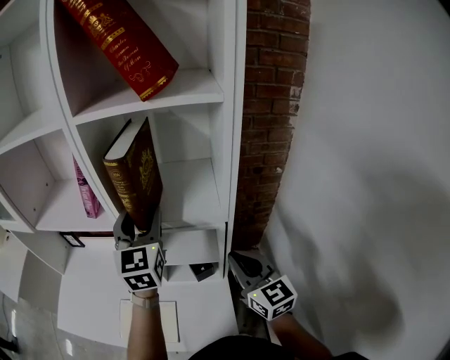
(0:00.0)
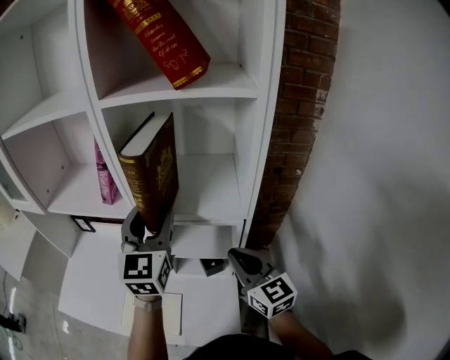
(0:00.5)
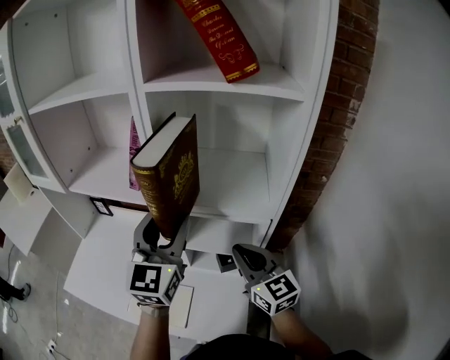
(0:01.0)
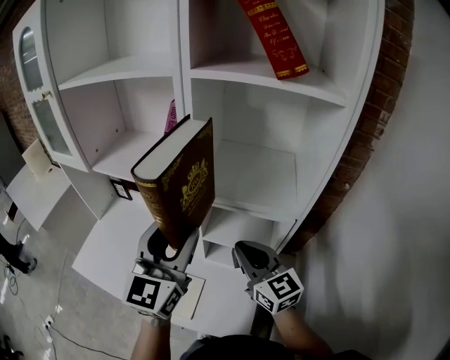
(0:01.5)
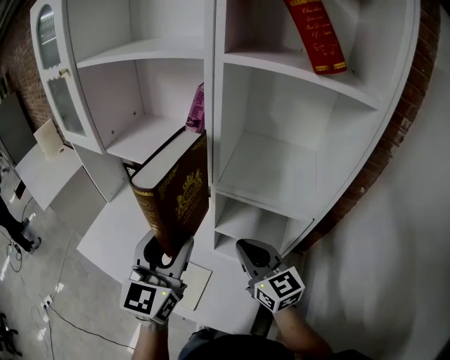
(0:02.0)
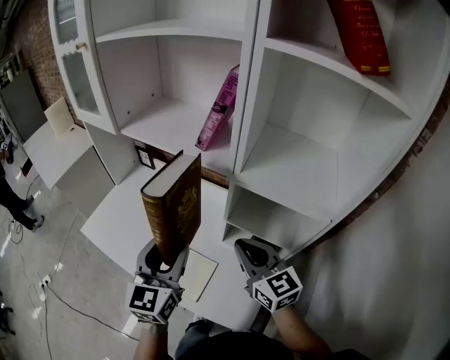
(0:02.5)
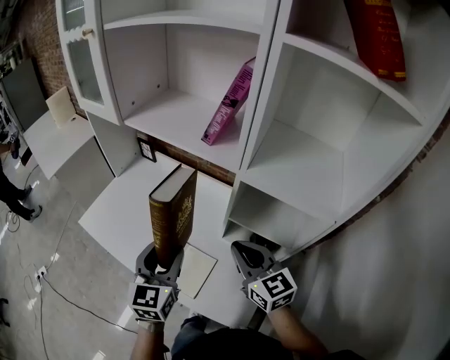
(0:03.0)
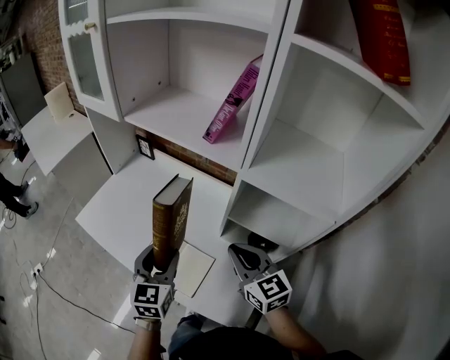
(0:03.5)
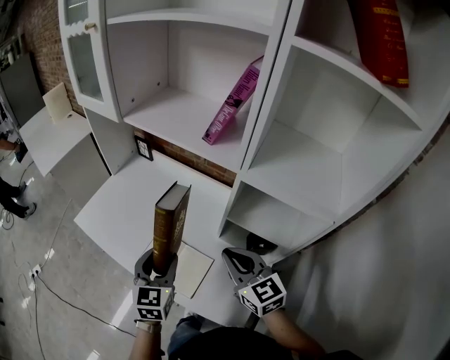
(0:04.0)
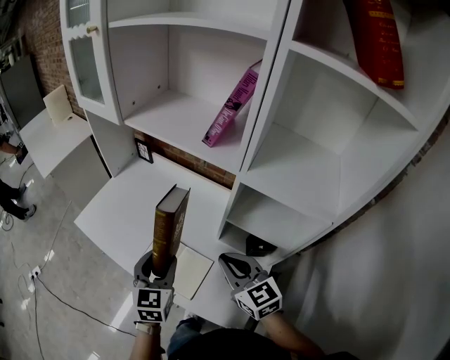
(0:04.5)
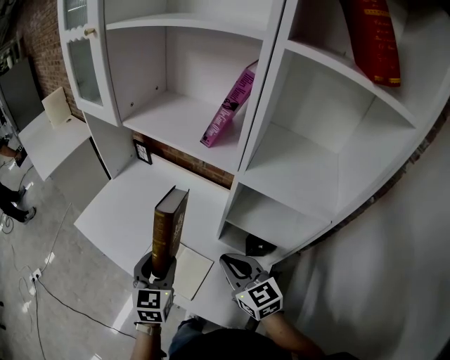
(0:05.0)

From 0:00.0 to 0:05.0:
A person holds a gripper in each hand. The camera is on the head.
From 0:00.0 to 0:02.5: The left gripper goes roughly 30 cm to the left, backward and downward, while the right gripper heads to the left, covering about 20 cm, and swivels roughly 30 degrees.
From 0:02.5 to 0:05.0: The left gripper is displaced downward by roughly 10 cm, while the right gripper moves downward, about 5 cm.

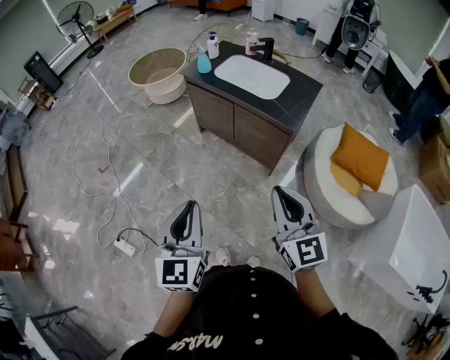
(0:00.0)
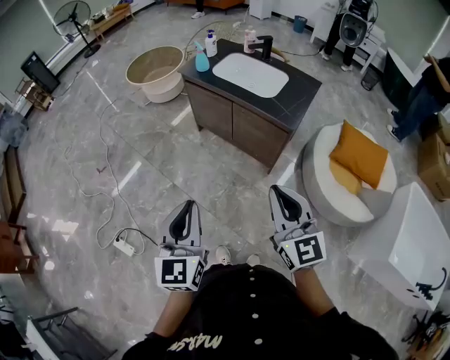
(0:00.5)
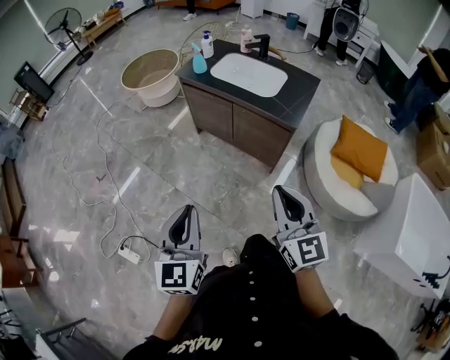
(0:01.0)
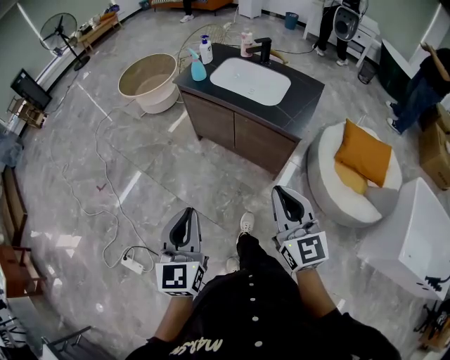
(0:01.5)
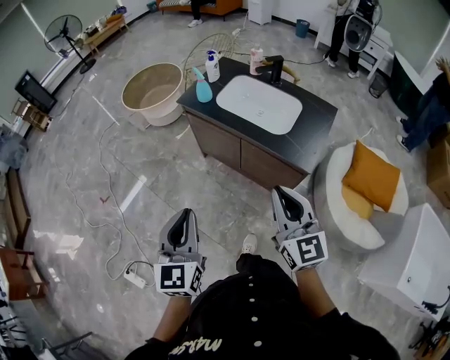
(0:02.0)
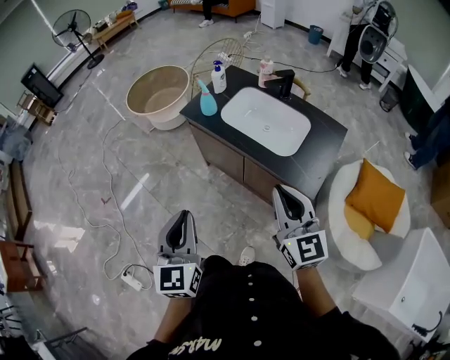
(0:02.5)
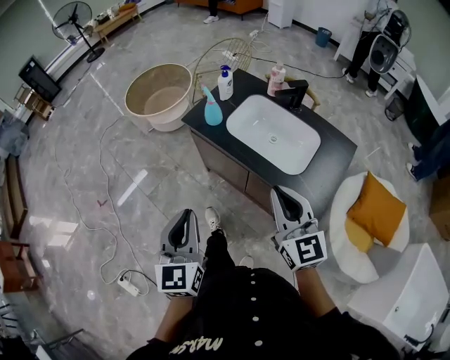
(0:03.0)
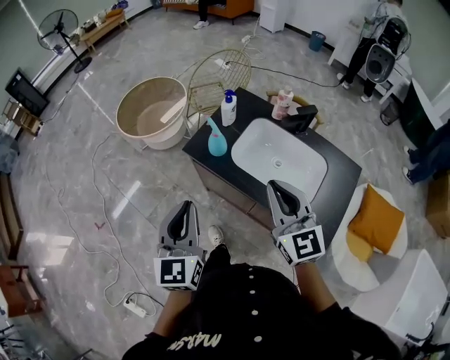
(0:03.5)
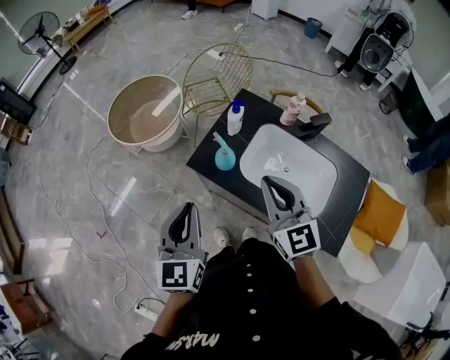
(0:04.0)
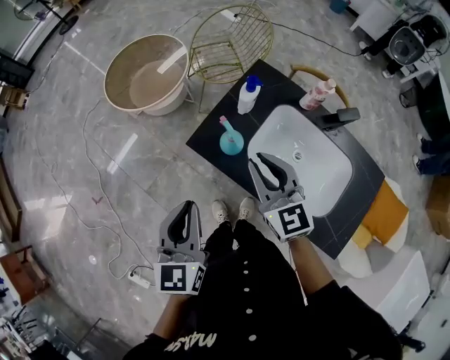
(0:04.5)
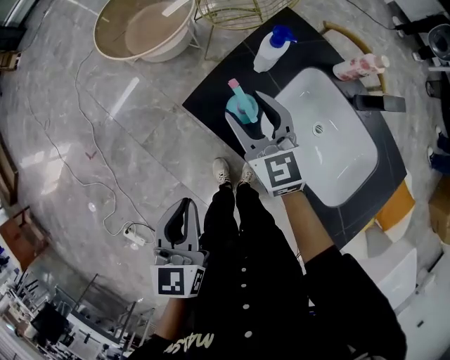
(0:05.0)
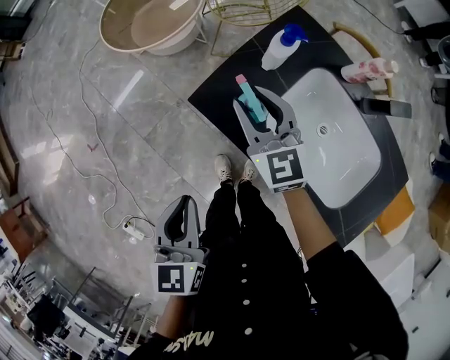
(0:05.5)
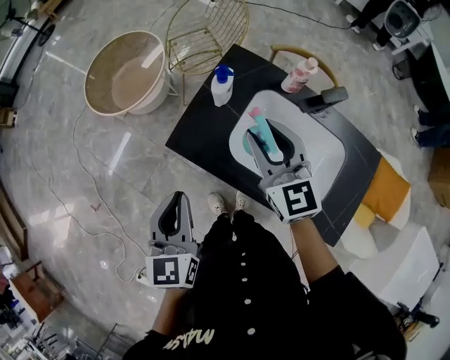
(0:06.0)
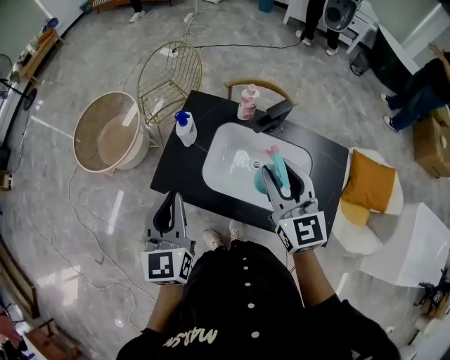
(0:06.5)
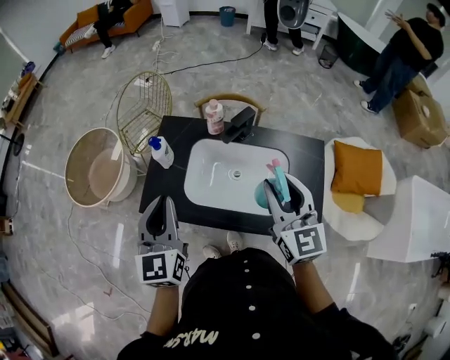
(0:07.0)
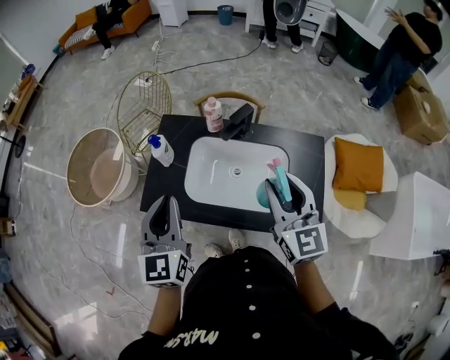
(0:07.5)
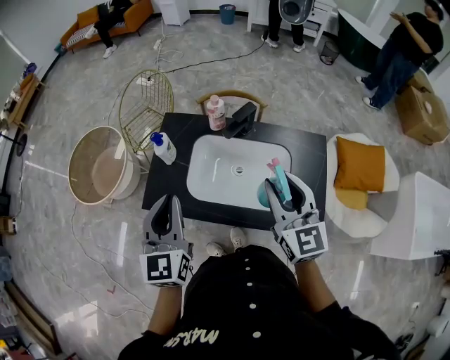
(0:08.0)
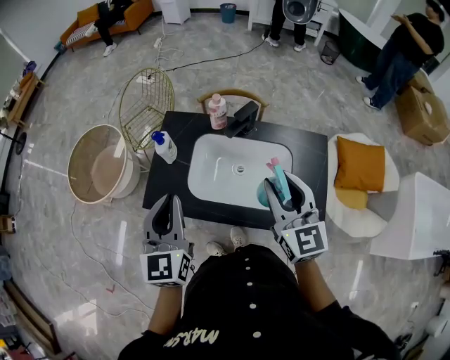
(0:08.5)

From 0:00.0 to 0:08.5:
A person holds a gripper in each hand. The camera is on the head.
From 0:00.0 to 0:02.0: Both grippers travel together forward, some 25 cm.
From 0:02.0 to 0:04.0: The two grippers travel together, forward, roughly 50 cm.
From 0:04.0 to 0:06.5: The left gripper reaches some 15 cm downward, then returns, while the right gripper reaches roughly 20 cm downward, then returns, and opens up.
From 0:06.5 to 0:08.5: The right gripper shifts about 10 cm to the right and backward. Meanwhile the left gripper travels to the right by approximately 5 cm.

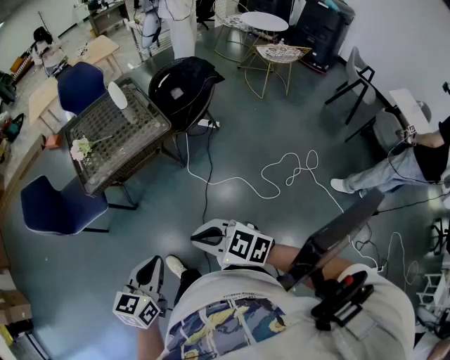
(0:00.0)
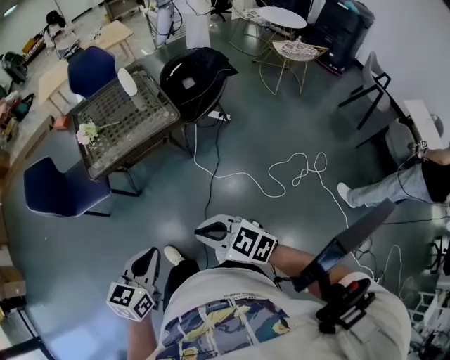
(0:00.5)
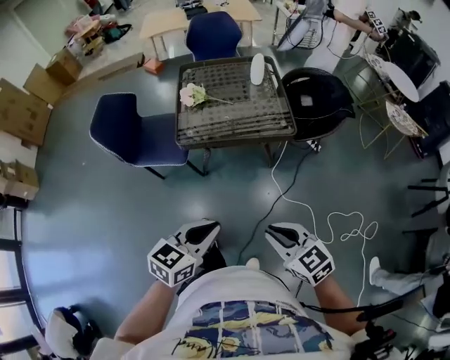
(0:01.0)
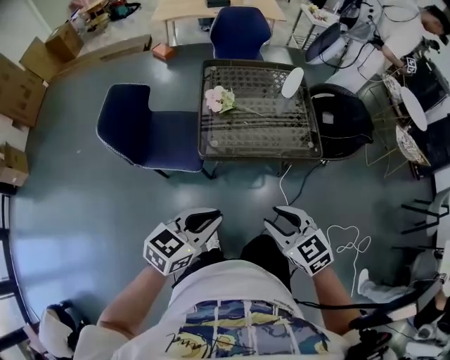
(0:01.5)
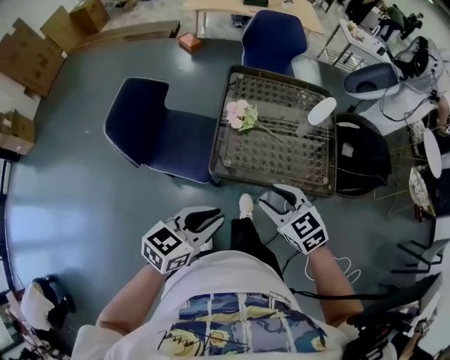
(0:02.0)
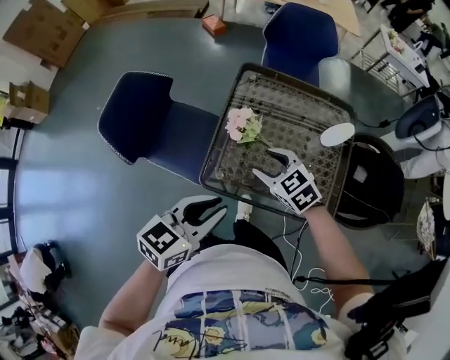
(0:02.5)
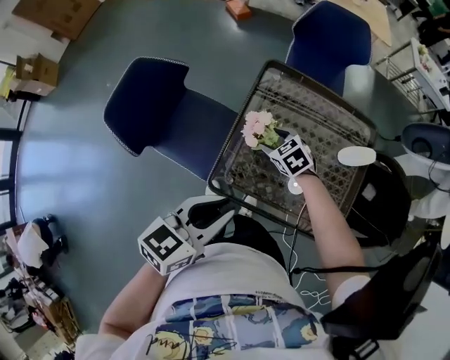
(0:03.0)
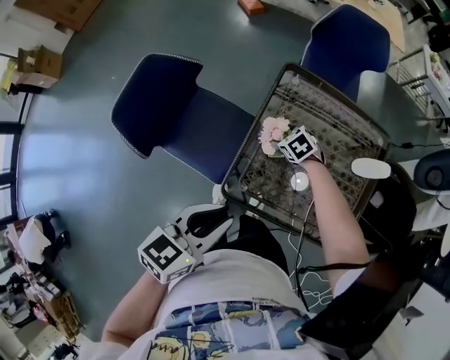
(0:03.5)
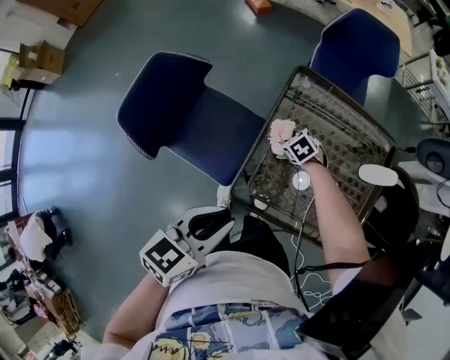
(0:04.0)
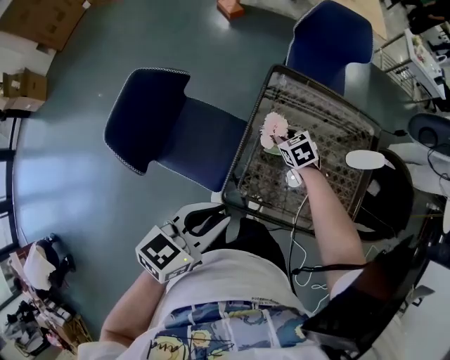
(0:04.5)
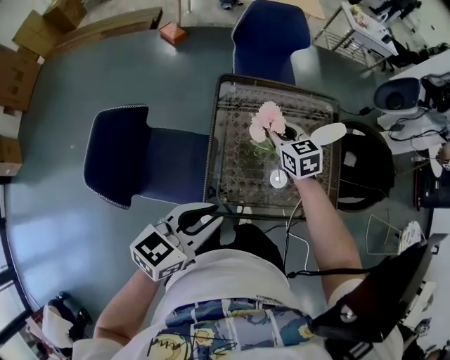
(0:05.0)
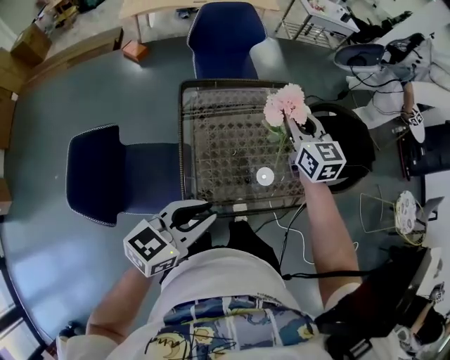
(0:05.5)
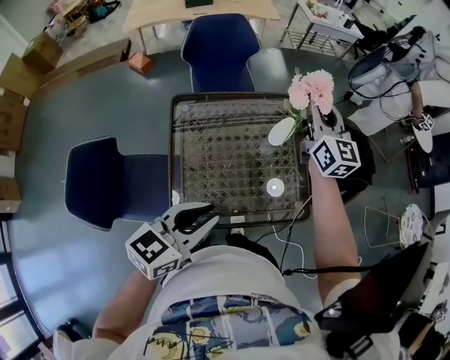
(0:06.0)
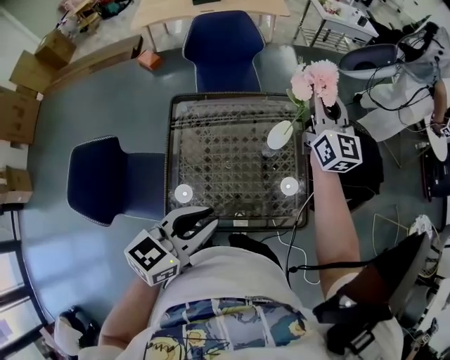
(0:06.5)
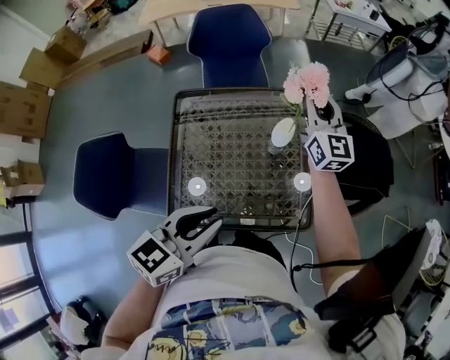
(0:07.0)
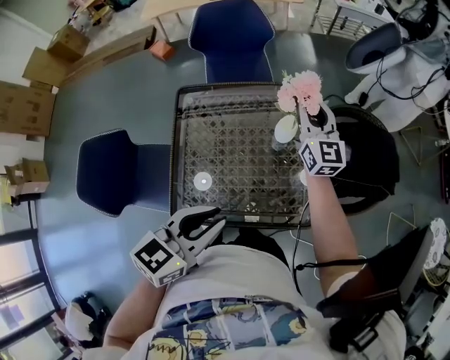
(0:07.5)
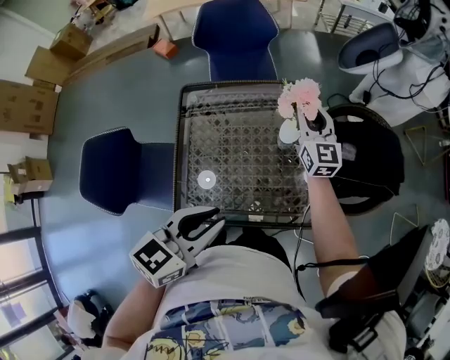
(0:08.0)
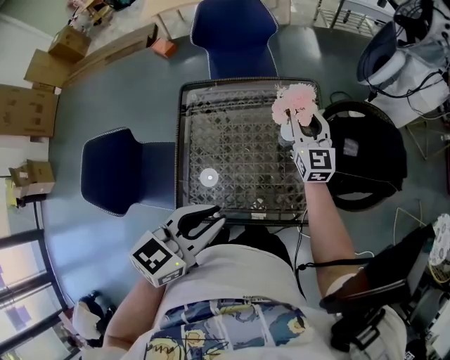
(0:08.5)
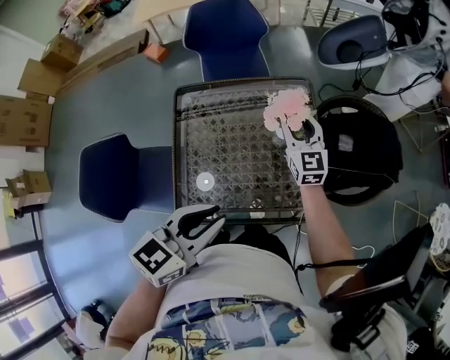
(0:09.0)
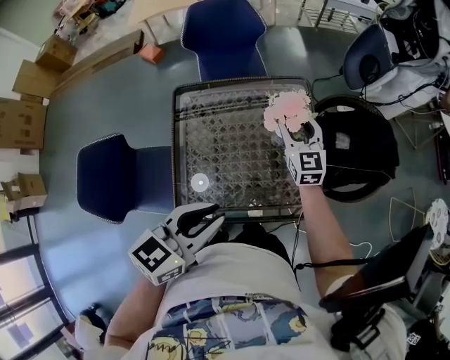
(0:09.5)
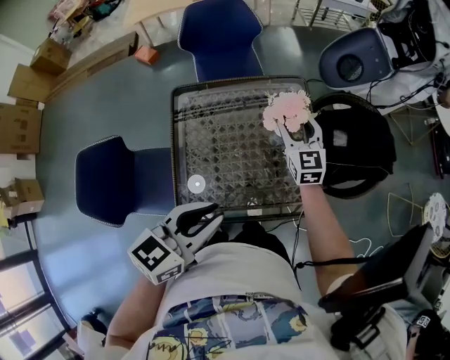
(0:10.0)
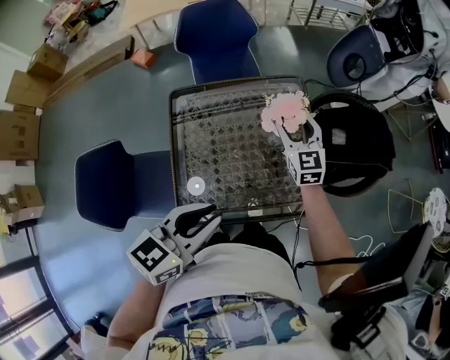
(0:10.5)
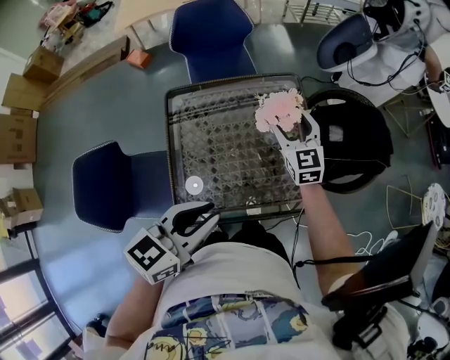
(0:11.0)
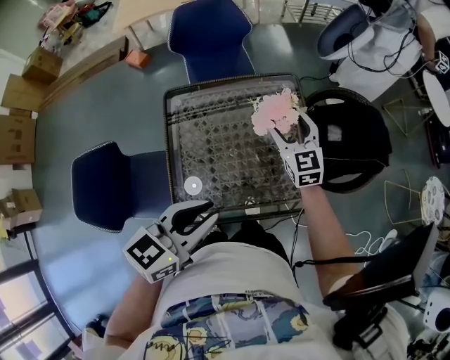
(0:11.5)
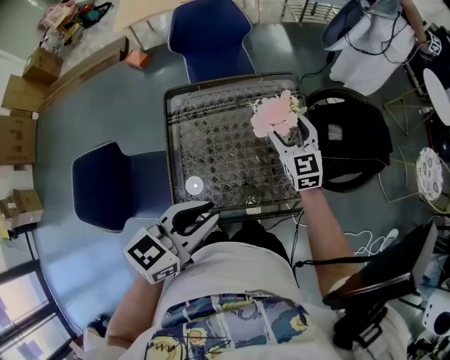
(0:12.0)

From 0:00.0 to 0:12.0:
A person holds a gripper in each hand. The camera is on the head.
From 0:00.0 to 0:02.0: Both grippers are carried forward and to the left, approximately 50 cm. The right gripper opens.
From 0:02.0 to 0:04.0: The left gripper goes some 20 cm forward, and swivels roughly 20 degrees, while the right gripper heads forward and downward, covering about 50 cm, tilts its fingers roughly 30 degrees downward, and opens, then closes once more.
From 0:04.0 to 0:06.0: The left gripper shifts by some 20 cm, and turns by roughly 30 degrees. The right gripper moves upward, approximately 50 cm, and tilts its fingers some 70 degrees upward.
From 0:06.0 to 0:08.0: The right gripper goes approximately 20 cm downward; the left gripper moves to the right, roughly 5 cm.
From 0:08.0 to 0:10.0: The right gripper is displaced backward by approximately 5 cm, and opens its fingers.
From 0:10.0 to 0:12.0: The grippers make only small movements.

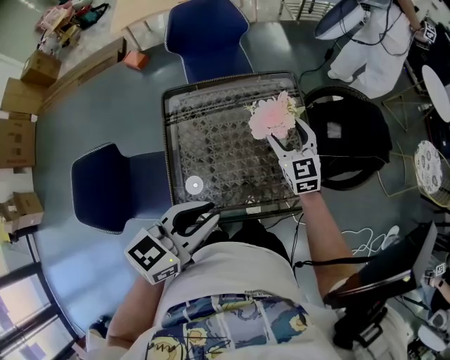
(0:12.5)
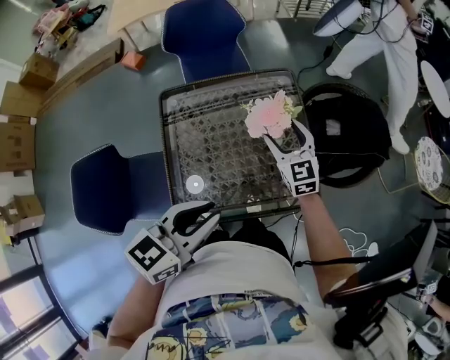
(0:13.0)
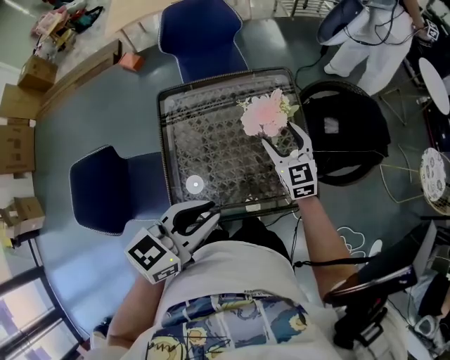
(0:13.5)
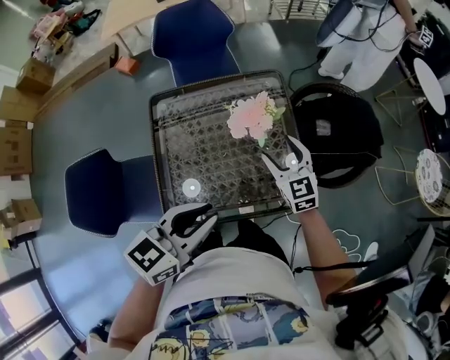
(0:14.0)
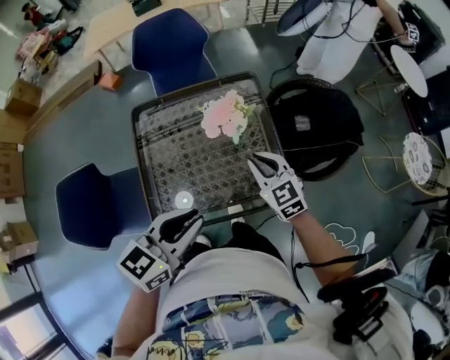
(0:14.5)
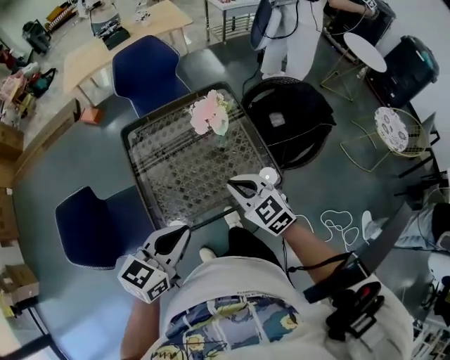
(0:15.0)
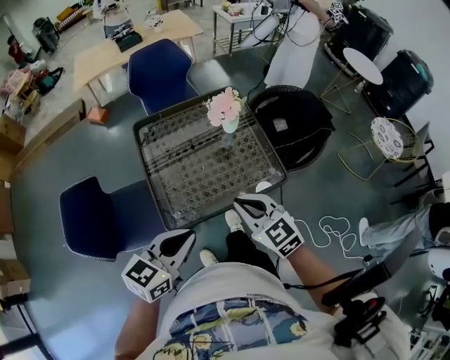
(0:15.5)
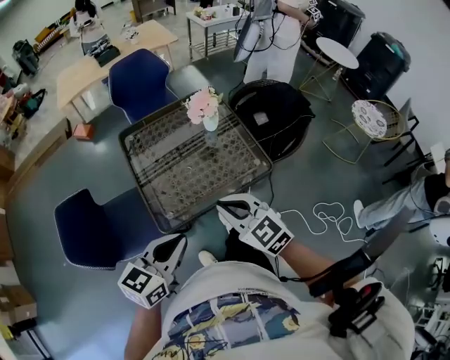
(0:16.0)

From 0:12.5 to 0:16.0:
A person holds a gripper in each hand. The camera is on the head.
From 0:12.5 to 0:14.5: The left gripper travels to the right by approximately 5 cm, while the right gripper goes some 10 cm backward and to the right, and closes up.
From 0:14.5 to 0:16.0: The left gripper goes some 20 cm backward and to the left; the right gripper travels backward by about 30 cm.
